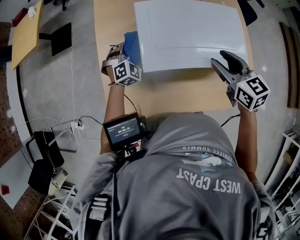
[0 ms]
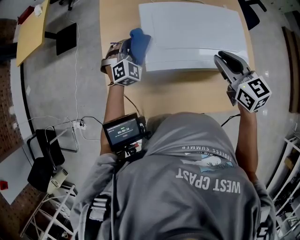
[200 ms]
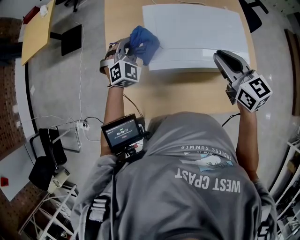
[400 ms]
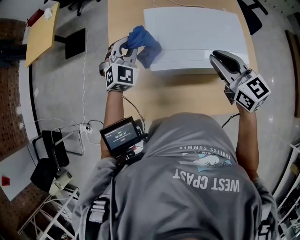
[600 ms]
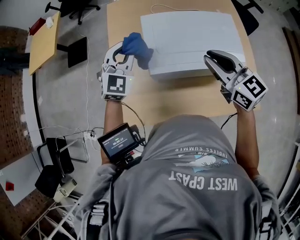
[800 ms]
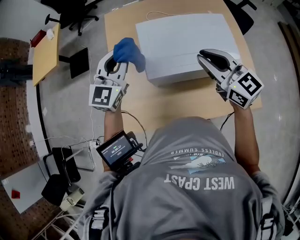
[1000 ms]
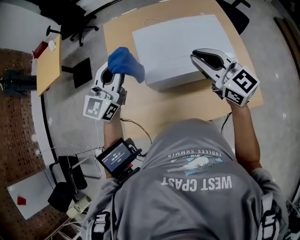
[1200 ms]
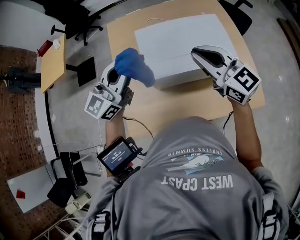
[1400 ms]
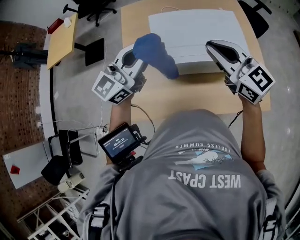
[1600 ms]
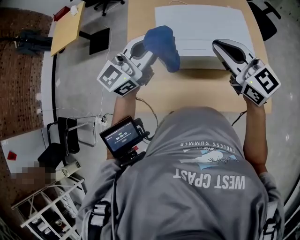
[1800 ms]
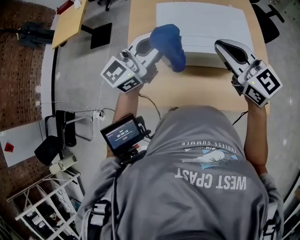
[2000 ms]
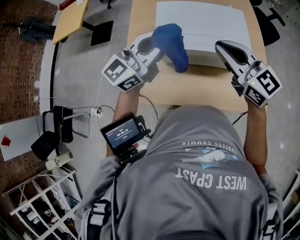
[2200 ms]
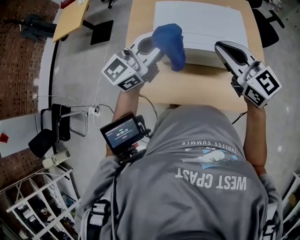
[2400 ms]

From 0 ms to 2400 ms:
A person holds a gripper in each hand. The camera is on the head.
From 0 ms to 1200 ms: The right gripper moves upward, backward and to the left, some 15 cm, turns by approximately 30 degrees, and closes. The left gripper is displaced upward and backward by some 35 cm, and angles its fingers upward, by approximately 40 degrees.
From 1200 ms to 2400 ms: The left gripper heads to the right and backward, covering roughly 15 cm; the right gripper changes place by about 5 cm.

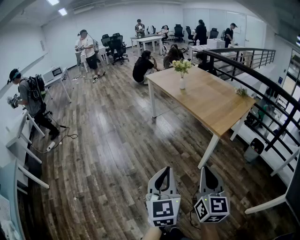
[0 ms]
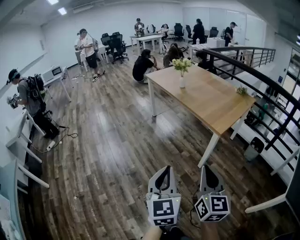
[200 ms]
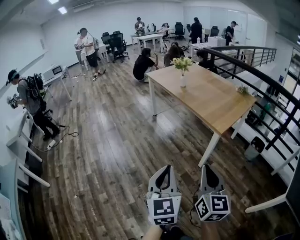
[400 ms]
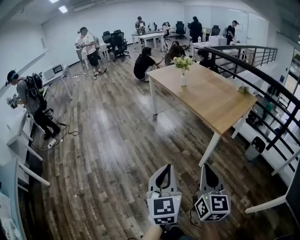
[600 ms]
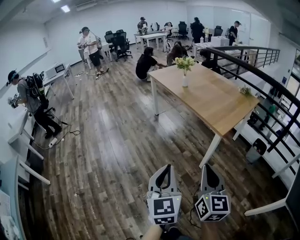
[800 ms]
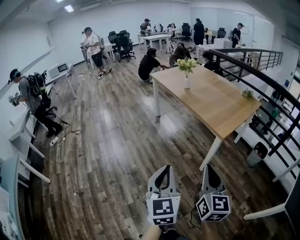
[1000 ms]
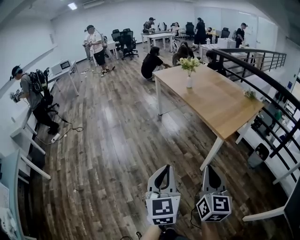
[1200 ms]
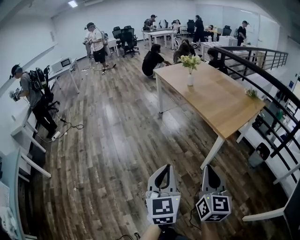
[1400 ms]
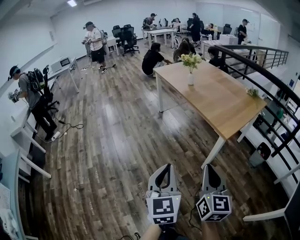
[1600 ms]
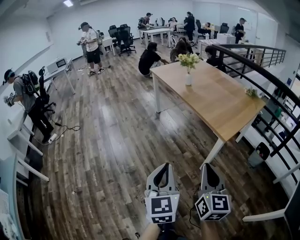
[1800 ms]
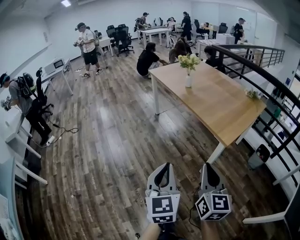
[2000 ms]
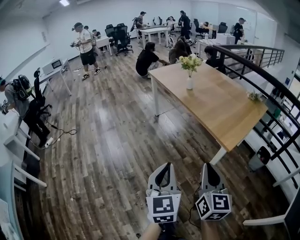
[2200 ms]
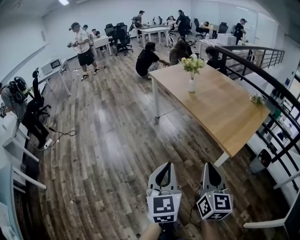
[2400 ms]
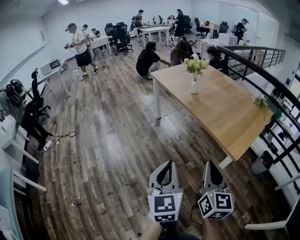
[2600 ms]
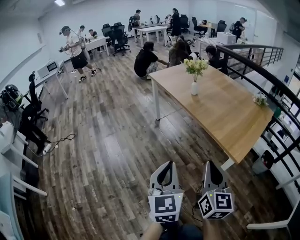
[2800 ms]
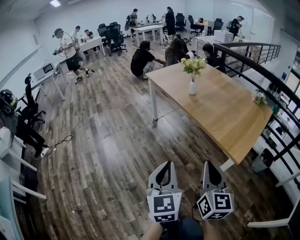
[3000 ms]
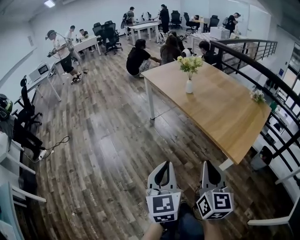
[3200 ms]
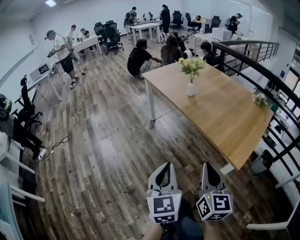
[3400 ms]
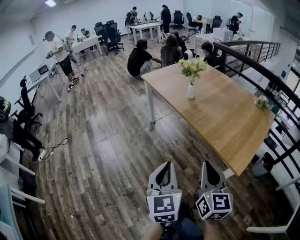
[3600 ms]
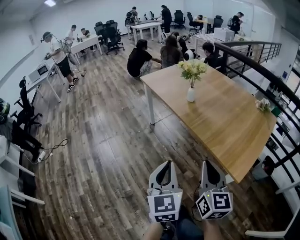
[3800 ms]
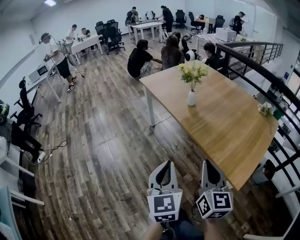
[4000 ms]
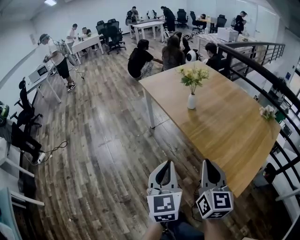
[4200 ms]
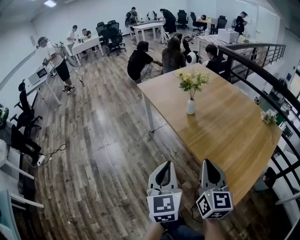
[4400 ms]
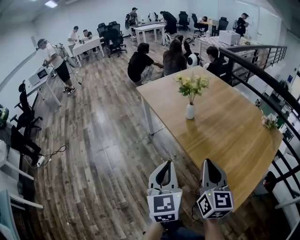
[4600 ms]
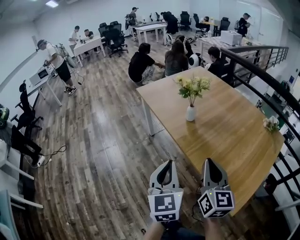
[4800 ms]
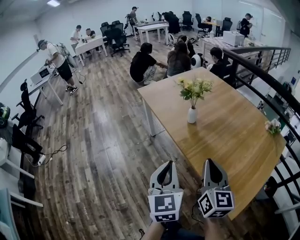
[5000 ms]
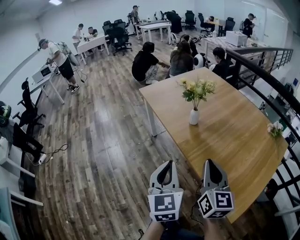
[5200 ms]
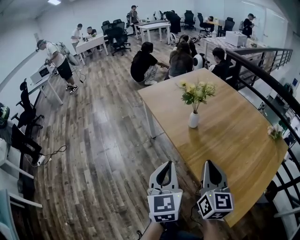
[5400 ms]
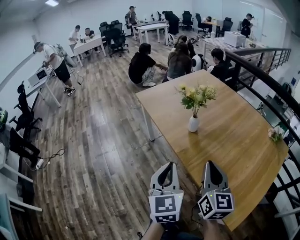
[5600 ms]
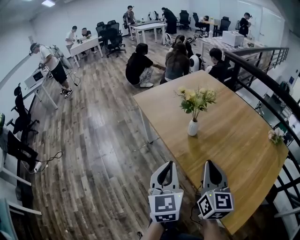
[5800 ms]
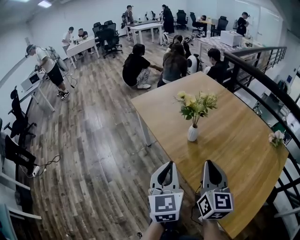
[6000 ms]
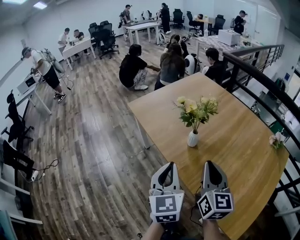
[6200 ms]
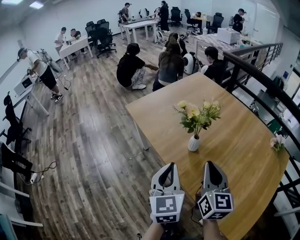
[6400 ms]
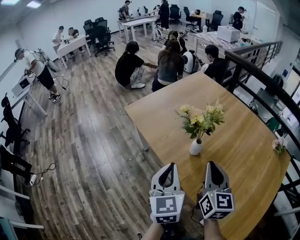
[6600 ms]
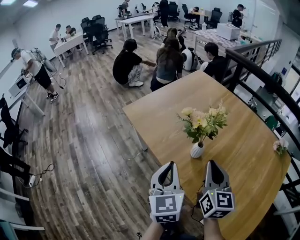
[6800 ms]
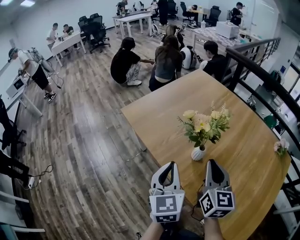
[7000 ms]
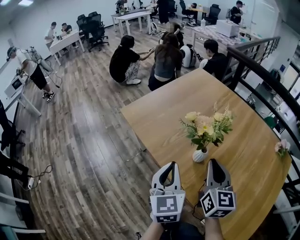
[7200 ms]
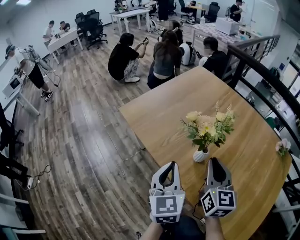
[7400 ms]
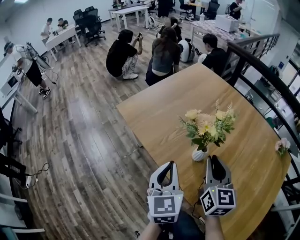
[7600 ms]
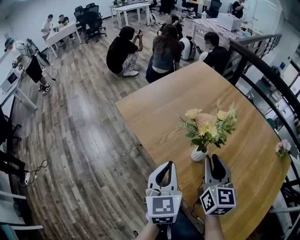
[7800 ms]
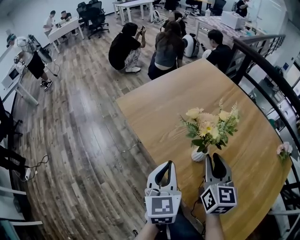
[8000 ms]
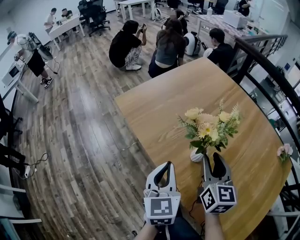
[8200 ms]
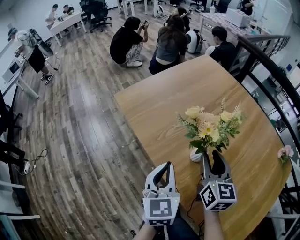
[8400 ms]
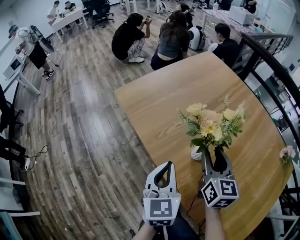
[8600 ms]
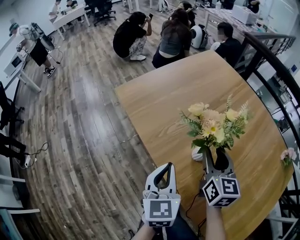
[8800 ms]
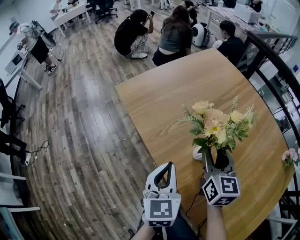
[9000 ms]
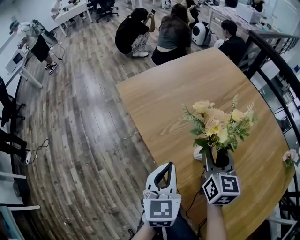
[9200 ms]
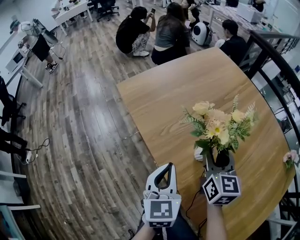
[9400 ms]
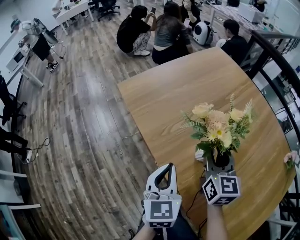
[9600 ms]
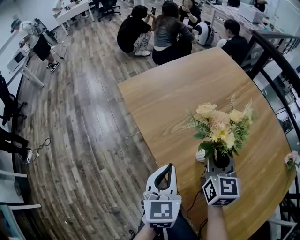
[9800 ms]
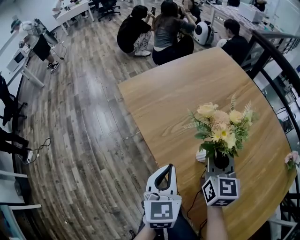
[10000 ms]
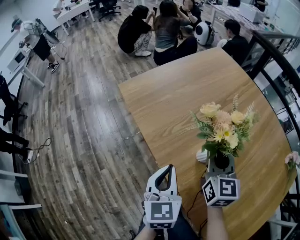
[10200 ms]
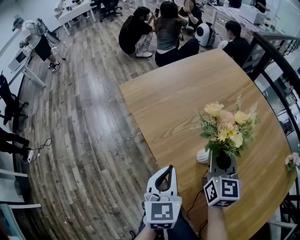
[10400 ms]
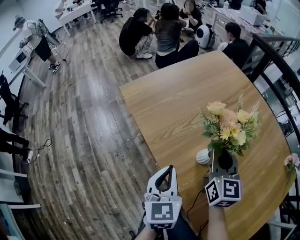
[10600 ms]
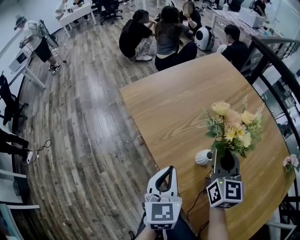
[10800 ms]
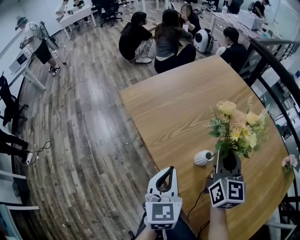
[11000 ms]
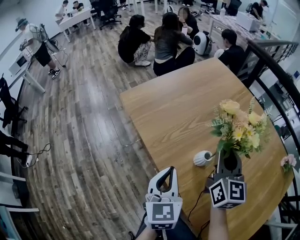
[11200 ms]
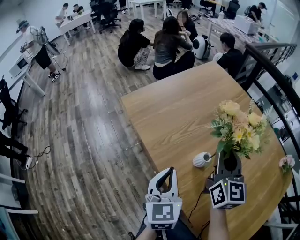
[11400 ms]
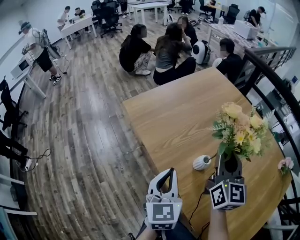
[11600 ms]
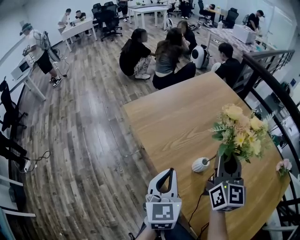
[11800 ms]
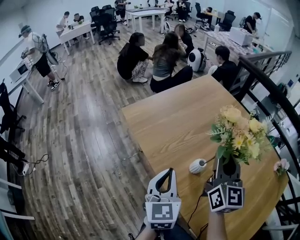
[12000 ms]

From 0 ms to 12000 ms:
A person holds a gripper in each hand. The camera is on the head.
From 0 ms to 1600 ms: The grippers both shift forward by roughly 5 cm.
From 1600 ms to 3000 ms: The two grippers go about 25 cm forward.
From 3000 ms to 4400 ms: Both grippers travel together forward, about 25 cm.
From 4400 ms to 6000 ms: Both grippers move forward, some 20 cm.
From 6000 ms to 7600 ms: Both grippers travel together forward, roughly 20 cm.
From 7600 ms to 9000 ms: The left gripper travels downward by roughly 5 cm. Meanwhile the right gripper is displaced forward and downward by some 10 cm, and opens.
From 9000 ms to 10400 ms: The right gripper closes up.
From 10400 ms to 12000 ms: The right gripper heads upward, covering some 15 cm. The left gripper shifts approximately 10 cm upward.

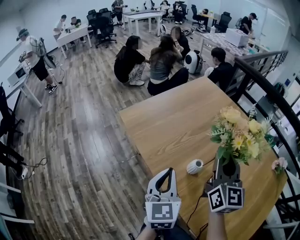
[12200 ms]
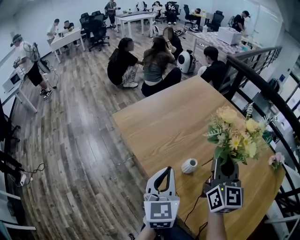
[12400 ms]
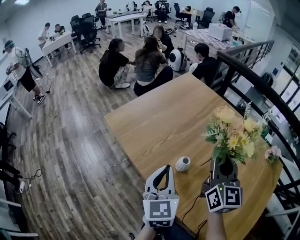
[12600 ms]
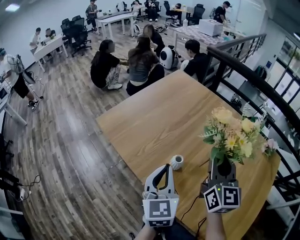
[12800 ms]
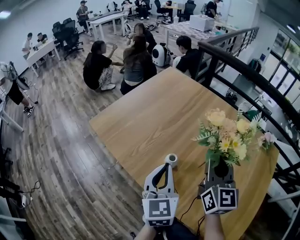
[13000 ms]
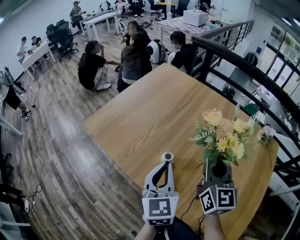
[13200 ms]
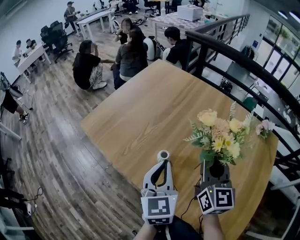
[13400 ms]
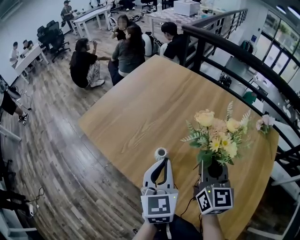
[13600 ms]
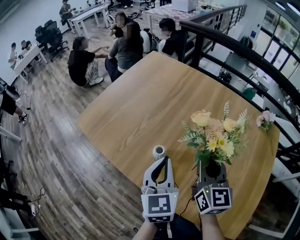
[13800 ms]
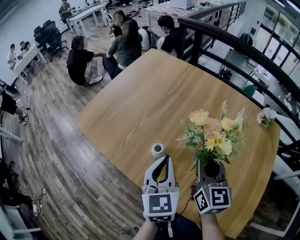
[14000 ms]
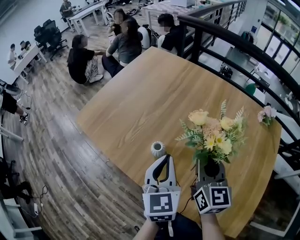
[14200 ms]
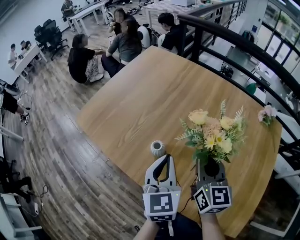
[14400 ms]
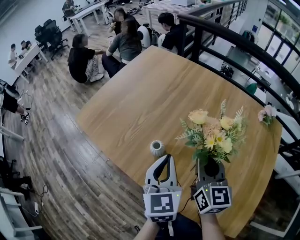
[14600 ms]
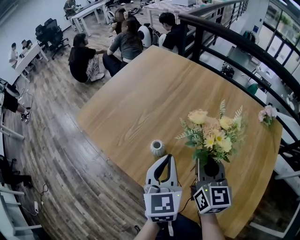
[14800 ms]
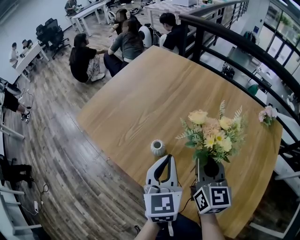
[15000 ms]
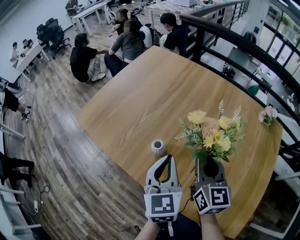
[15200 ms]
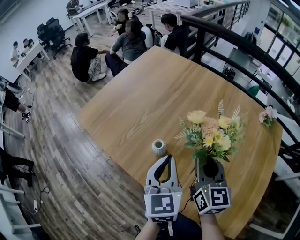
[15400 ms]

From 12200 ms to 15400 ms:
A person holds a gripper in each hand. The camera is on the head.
From 12200 ms to 13800 ms: The left gripper moves to the right, some 15 cm. The right gripper shifts about 15 cm to the right and downward.
From 13800 ms to 15400 ms: The grippers move only a little.

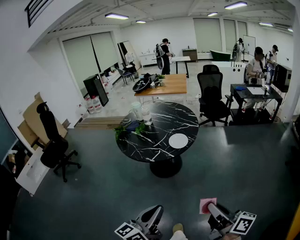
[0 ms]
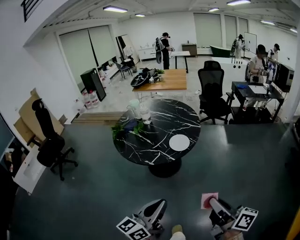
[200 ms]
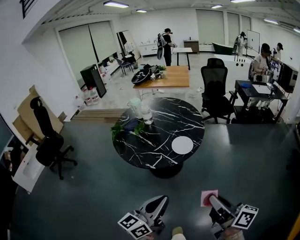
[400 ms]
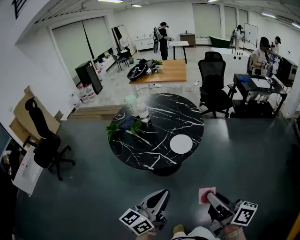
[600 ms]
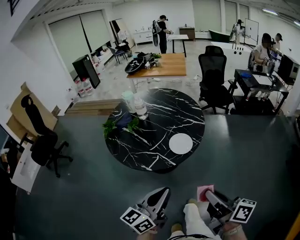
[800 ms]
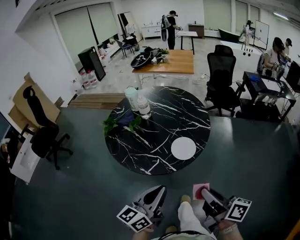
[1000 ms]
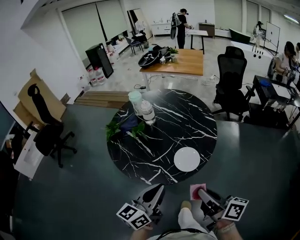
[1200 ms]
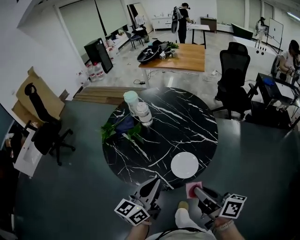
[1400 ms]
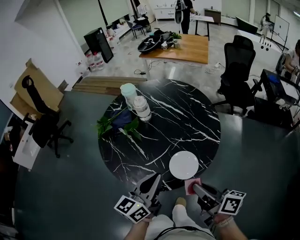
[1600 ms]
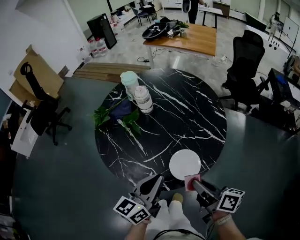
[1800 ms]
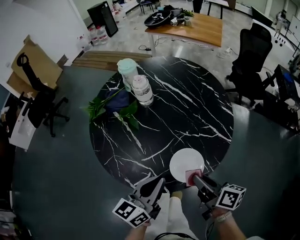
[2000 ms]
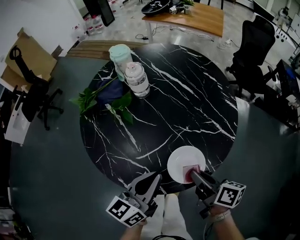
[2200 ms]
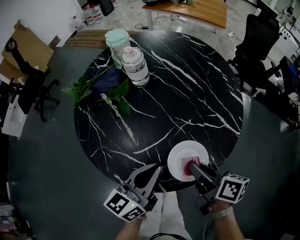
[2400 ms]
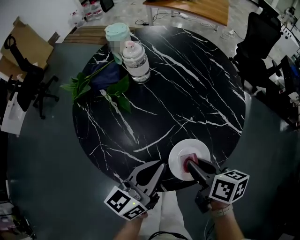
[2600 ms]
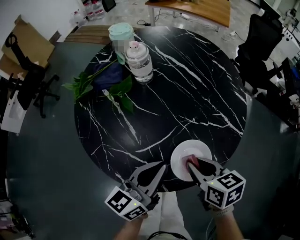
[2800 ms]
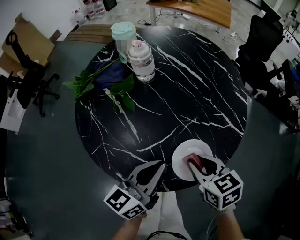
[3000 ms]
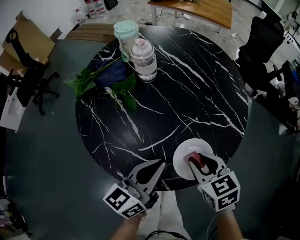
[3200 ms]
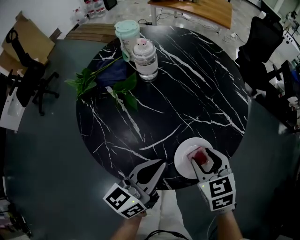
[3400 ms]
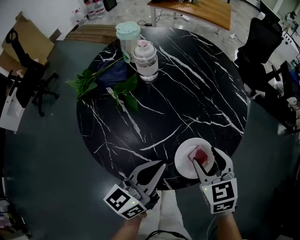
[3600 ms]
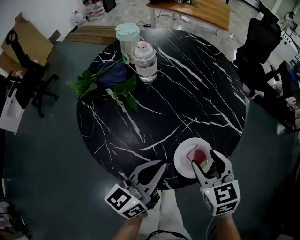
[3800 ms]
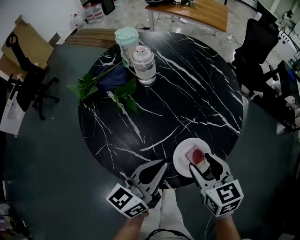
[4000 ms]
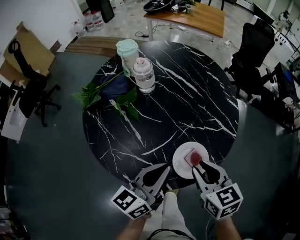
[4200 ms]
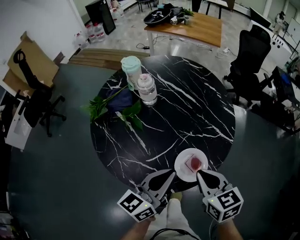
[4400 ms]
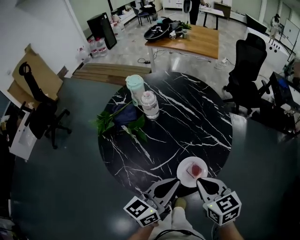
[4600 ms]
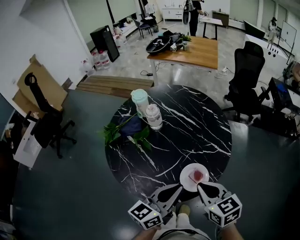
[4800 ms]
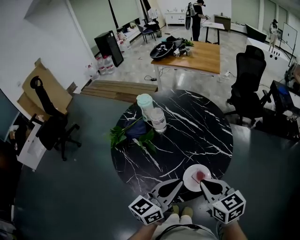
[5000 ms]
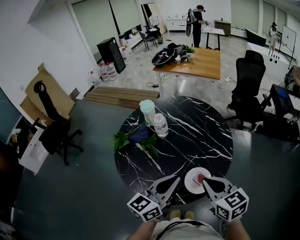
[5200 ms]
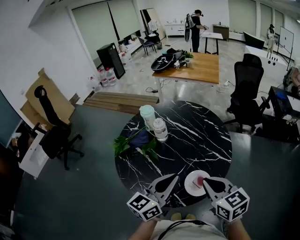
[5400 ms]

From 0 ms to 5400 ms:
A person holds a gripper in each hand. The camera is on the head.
From 0 ms to 1400 ms: The two grippers travel together, forward, about 50 cm.
From 1400 ms to 2800 ms: Both grippers move downward and forward, roughly 20 cm. The right gripper tilts its fingers some 40 degrees downward.
From 2800 ms to 4000 ms: The right gripper changes its angle by some 20 degrees, and opens.
From 4000 ms to 5400 ms: Both grippers move upward, some 15 cm. The right gripper closes up.
